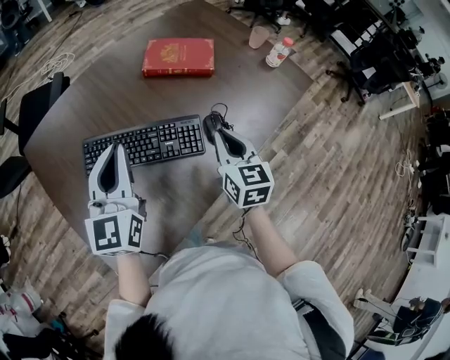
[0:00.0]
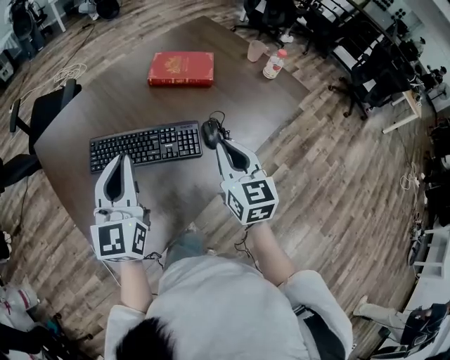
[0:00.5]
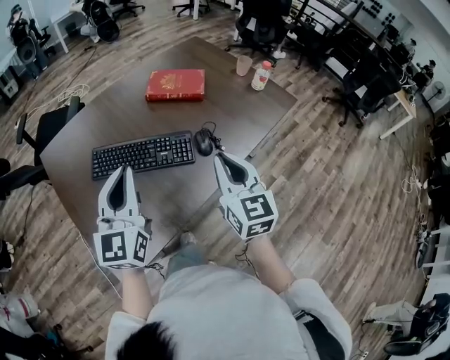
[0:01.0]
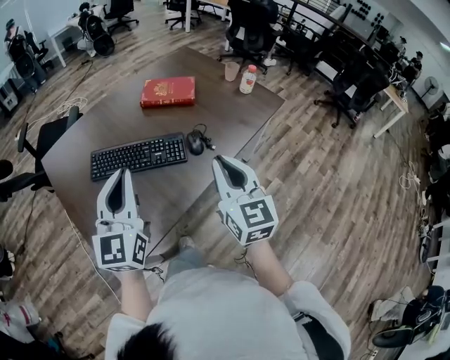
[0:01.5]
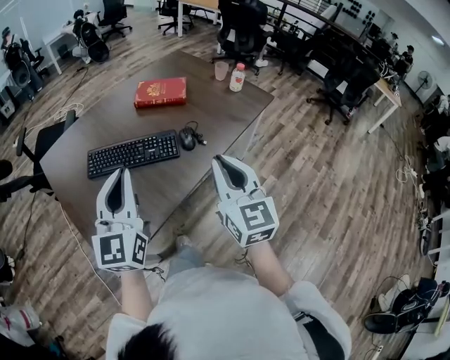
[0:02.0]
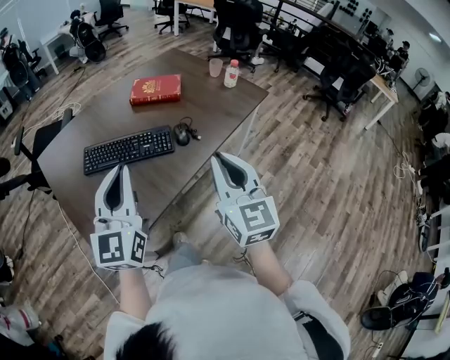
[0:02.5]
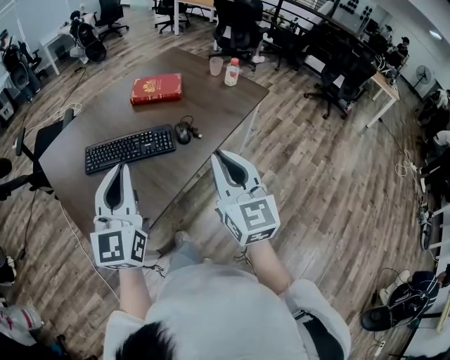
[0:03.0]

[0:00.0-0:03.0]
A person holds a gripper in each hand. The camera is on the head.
0:00.0 to 0:01.5: The grippers both shift backward and upward by some 20 cm.
0:01.5 to 0:03.0: The two grippers go about 10 cm backward.

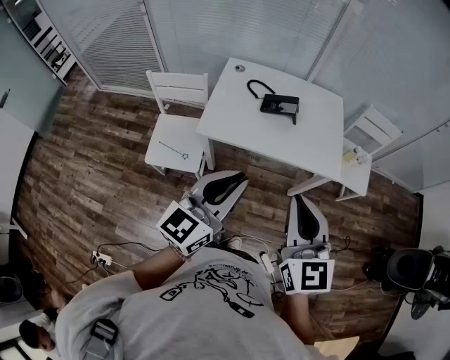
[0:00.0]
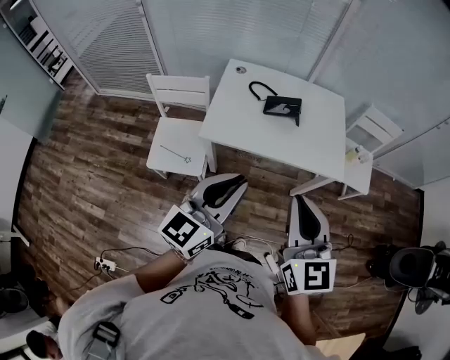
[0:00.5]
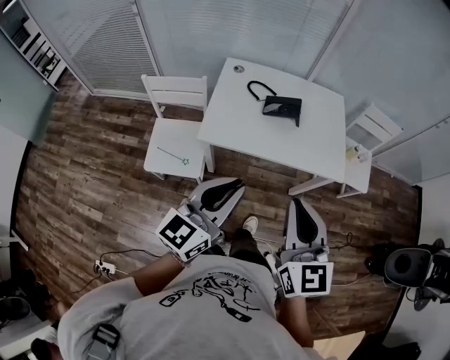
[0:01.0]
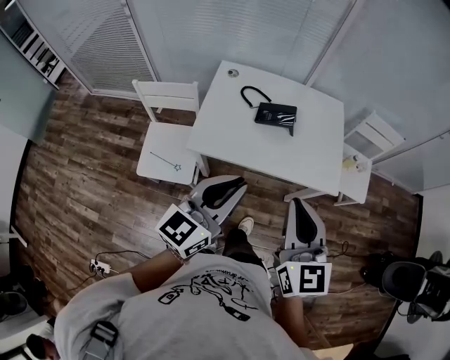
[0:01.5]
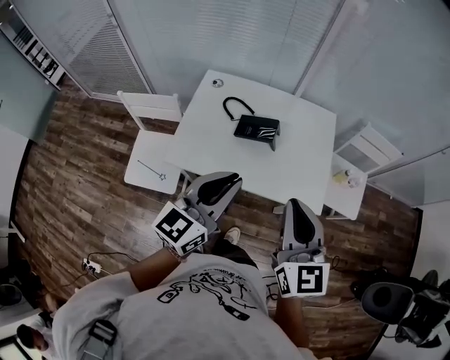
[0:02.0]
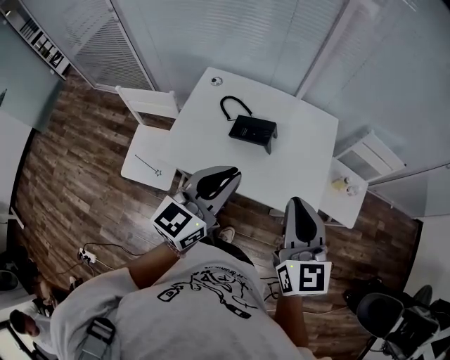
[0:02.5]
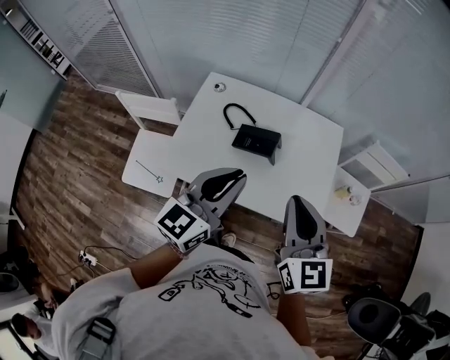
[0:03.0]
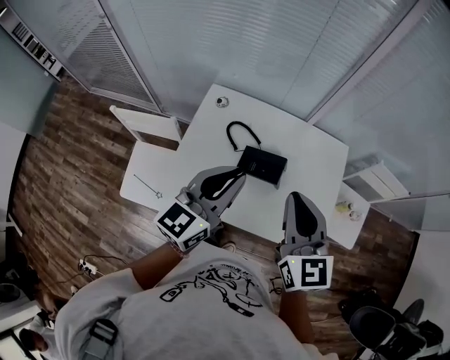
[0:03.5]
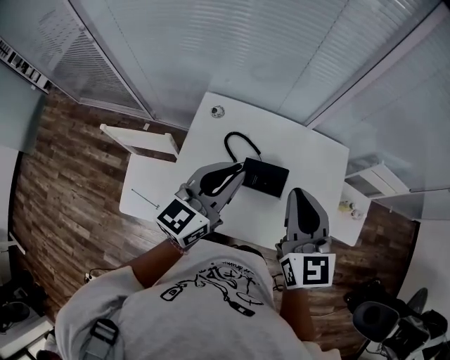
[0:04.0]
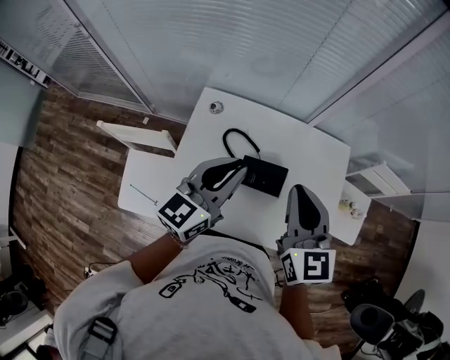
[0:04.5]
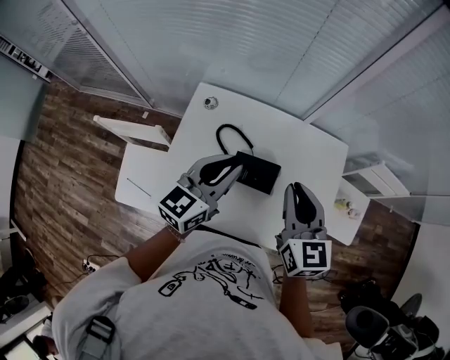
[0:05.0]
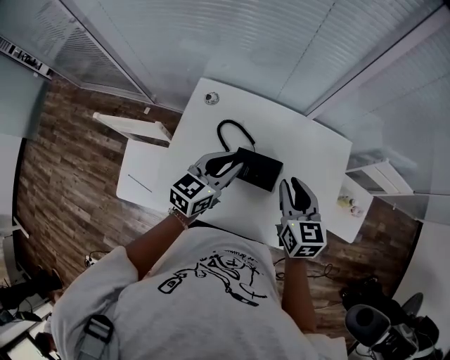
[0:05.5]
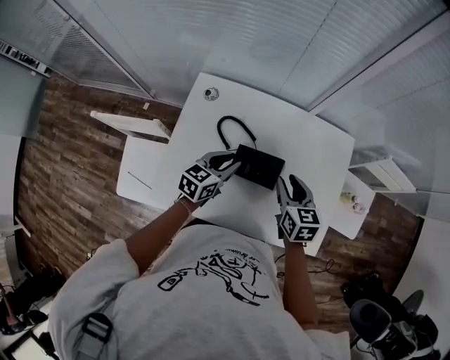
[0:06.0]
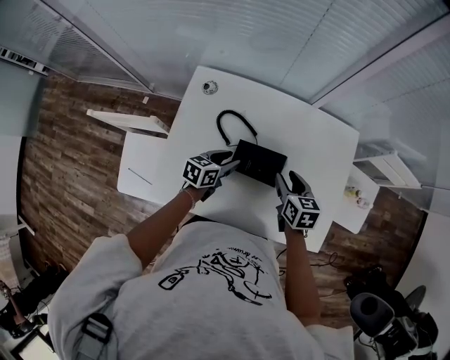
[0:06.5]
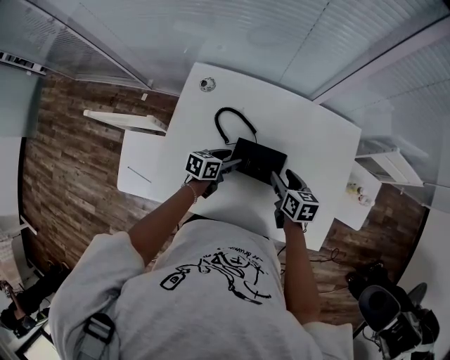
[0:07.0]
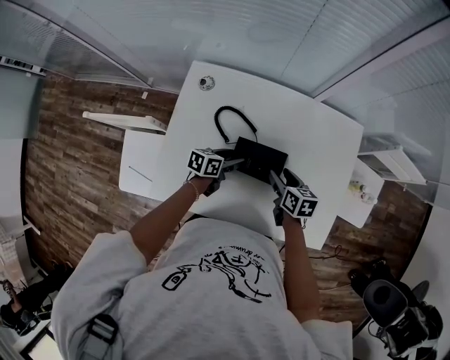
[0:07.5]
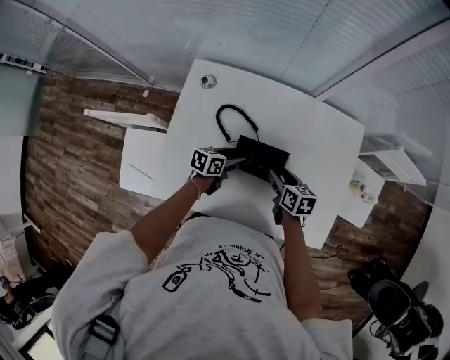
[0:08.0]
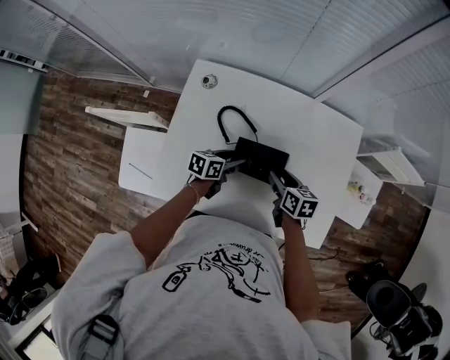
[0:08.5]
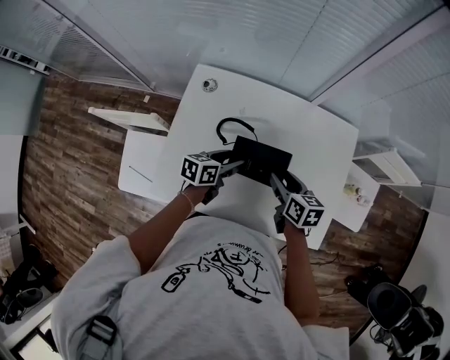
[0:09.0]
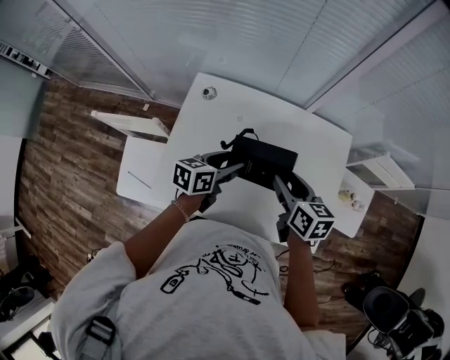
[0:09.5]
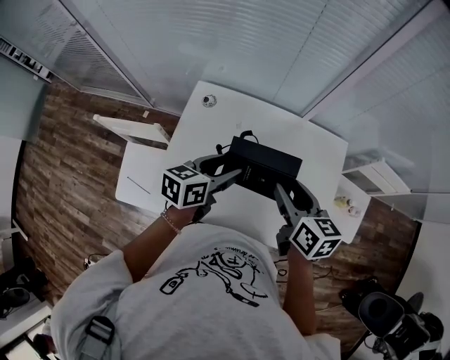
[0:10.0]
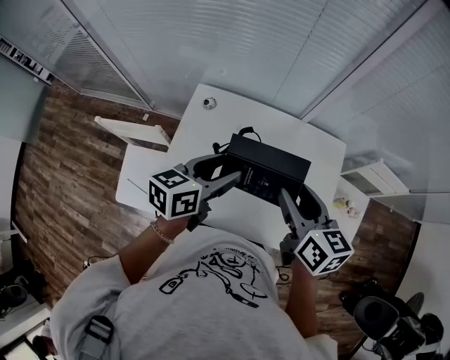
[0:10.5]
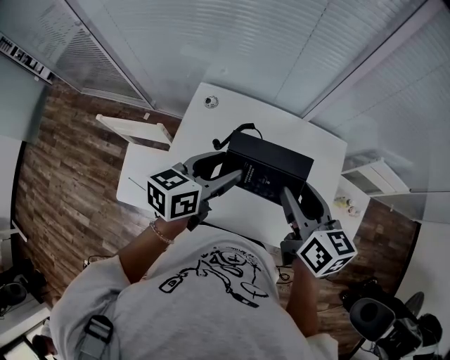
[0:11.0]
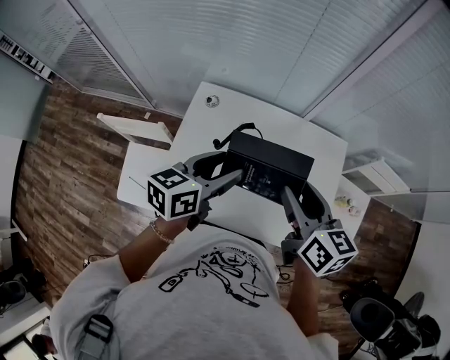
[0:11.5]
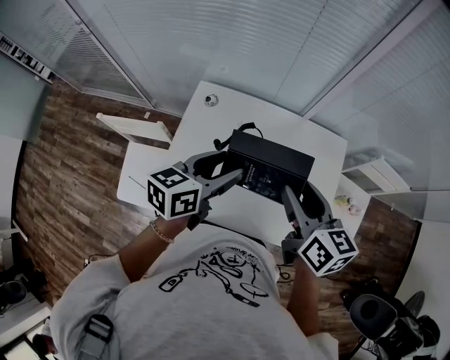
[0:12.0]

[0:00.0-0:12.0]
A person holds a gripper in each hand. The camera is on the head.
0:00.0 to 0:02.0: Both grippers move forward, approximately 20 cm.
0:02.0 to 0:04.0: Both grippers move forward, about 25 cm.
0:04.0 to 0:06.0: The two grippers go approximately 25 cm downward. The left gripper changes its angle by about 30 degrees; the right gripper rotates approximately 30 degrees, and opens up.
0:06.0 to 0:08.0: The two grippers go roughly 15 cm downward. The right gripper changes its angle by some 20 degrees, and opens its fingers. The left gripper rotates approximately 30 degrees, and opens.
0:08.0 to 0:10.0: The two grippers go some 25 cm upward.
0:10.0 to 0:12.0: Both grippers travel together upward, approximately 10 cm.

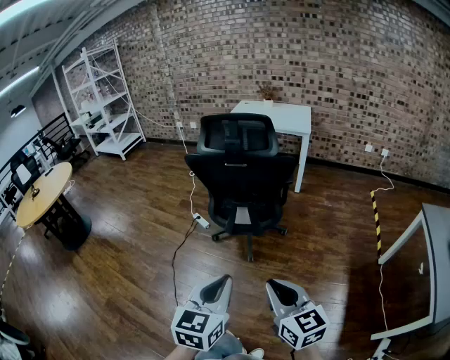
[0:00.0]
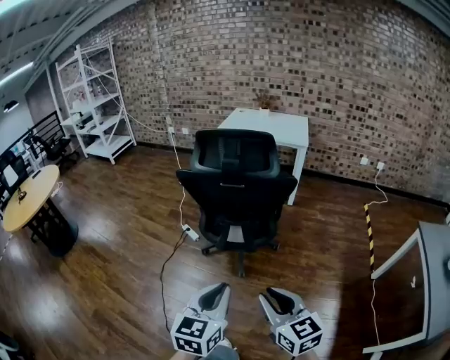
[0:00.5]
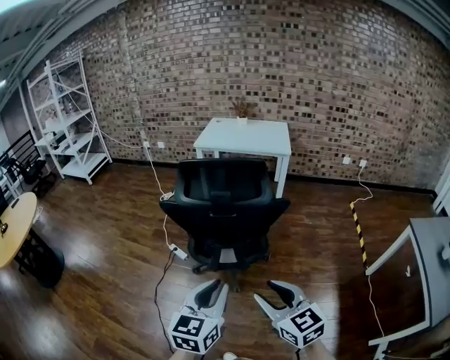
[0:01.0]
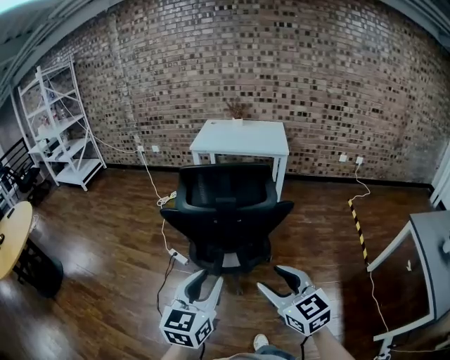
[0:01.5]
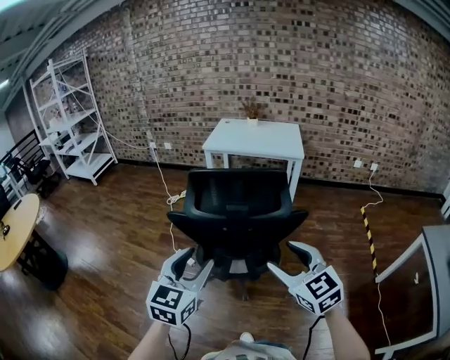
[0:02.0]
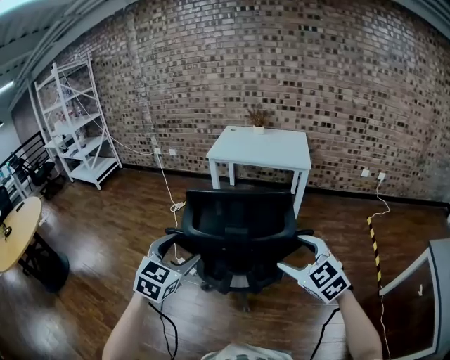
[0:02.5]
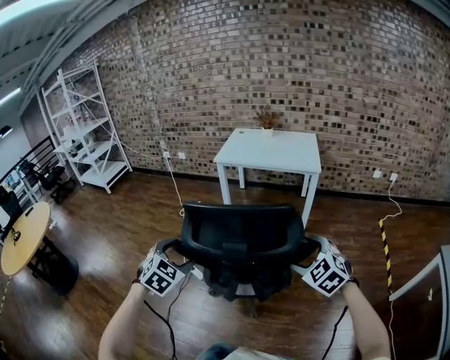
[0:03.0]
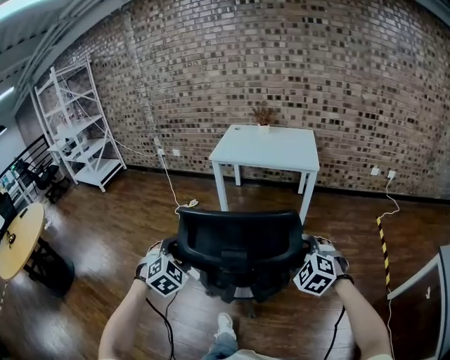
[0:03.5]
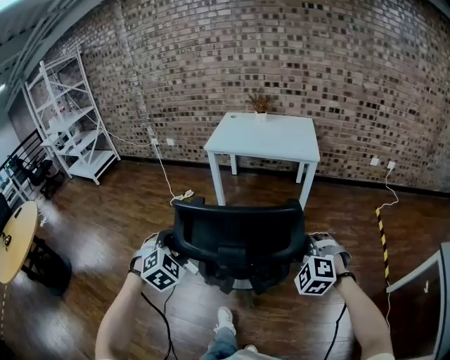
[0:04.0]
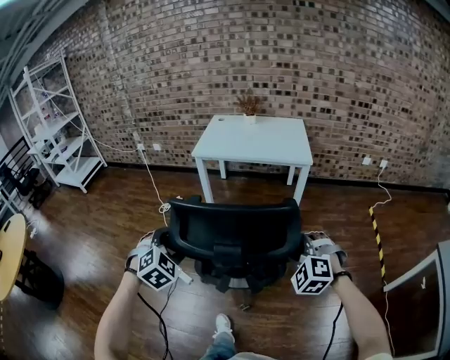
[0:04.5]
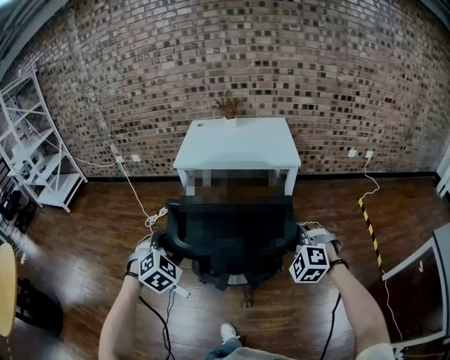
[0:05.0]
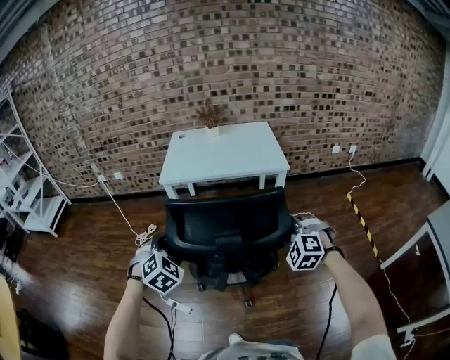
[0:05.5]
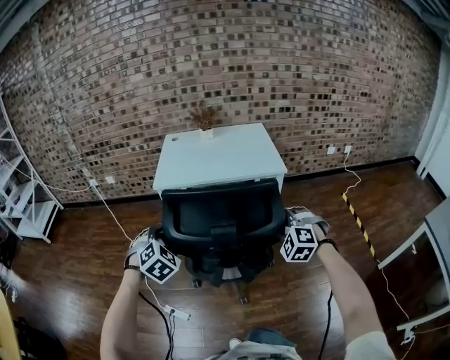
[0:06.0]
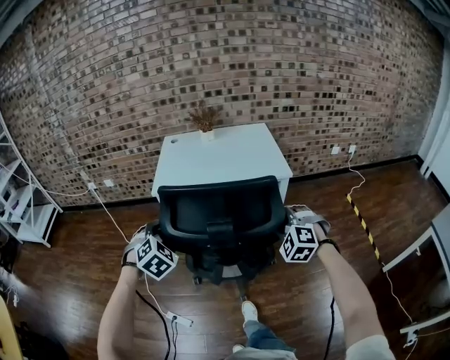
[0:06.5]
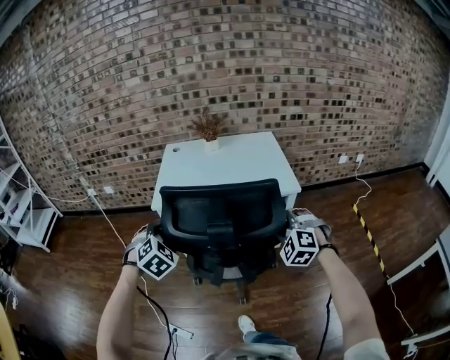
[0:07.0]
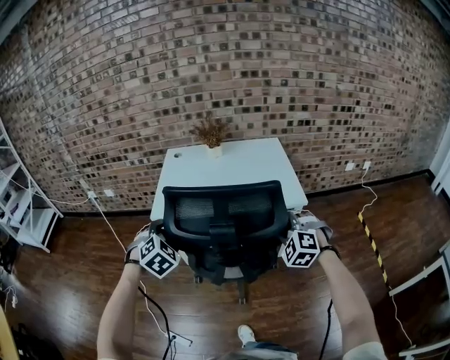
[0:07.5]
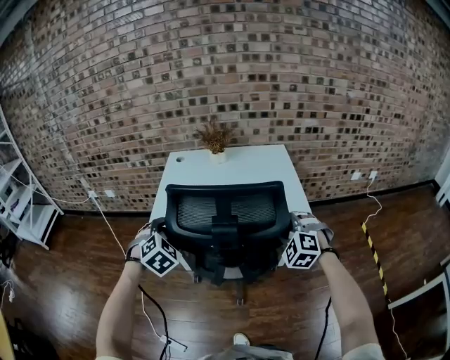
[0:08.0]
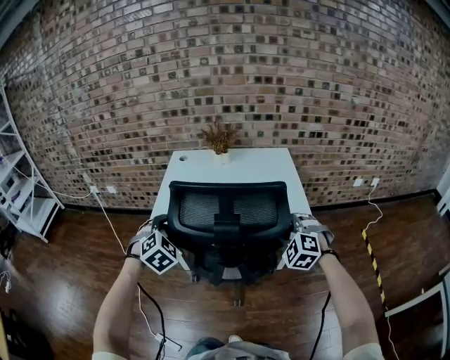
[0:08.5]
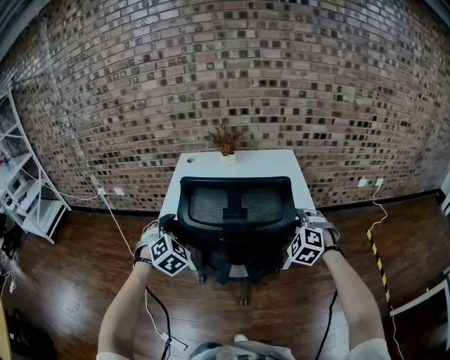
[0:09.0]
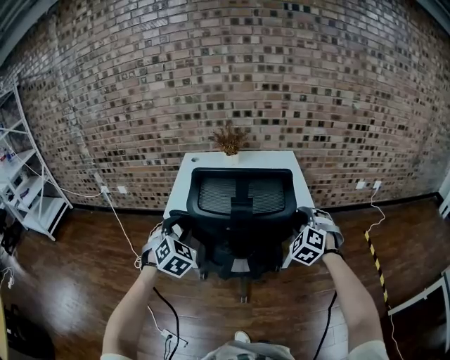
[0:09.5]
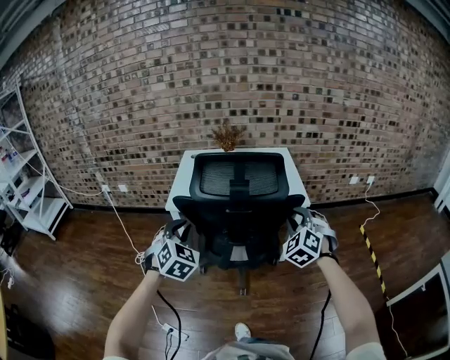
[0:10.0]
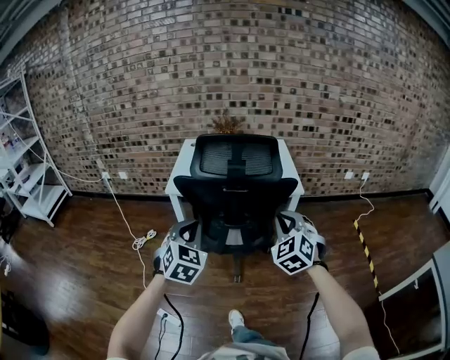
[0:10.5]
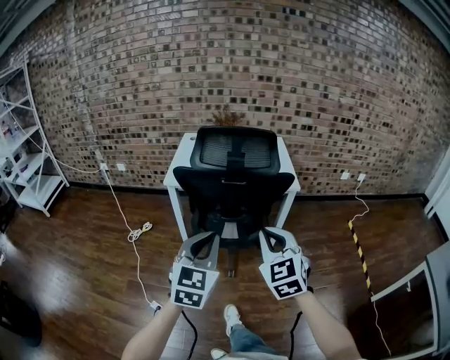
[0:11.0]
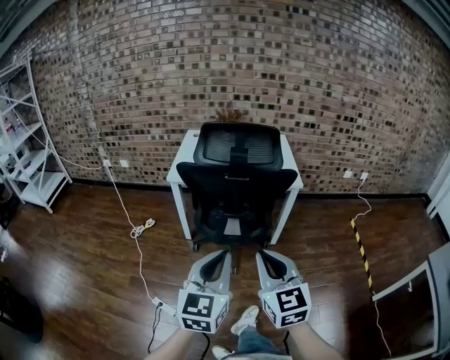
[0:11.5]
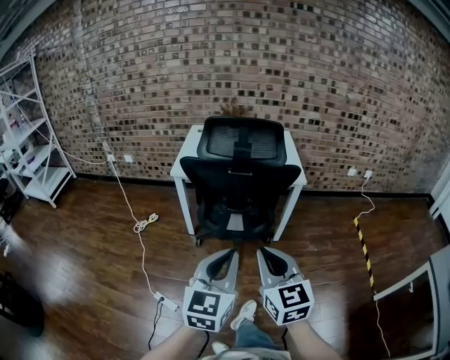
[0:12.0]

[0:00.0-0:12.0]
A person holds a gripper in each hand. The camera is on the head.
0:00.0 to 0:02.0: Both grippers move forward, about 35 cm. The left gripper opens up, while the right gripper swivels some 20 degrees, and opens its fingers.
0:02.0 to 0:04.0: The two grippers go roughly 25 cm forward and downward. The left gripper points its fingers some 30 degrees further downward, while the right gripper rotates around the line of its fingers by approximately 40 degrees, counterclockwise from behind.
0:04.0 to 0:06.0: Both grippers move forward, roughly 30 cm.
0:06.0 to 0:08.0: Both grippers travel together forward, approximately 30 cm.
0:08.0 to 0:10.0: Both grippers move backward and upward, some 15 cm. The right gripper changes its angle by about 20 degrees, while the left gripper swivels some 20 degrees, and closes its fingers.
0:10.0 to 0:12.0: The right gripper moves backward, approximately 30 cm, and rotates around the line of its fingers by about 50 degrees, clockwise from behind, while the left gripper heads backward and to the right, covering about 30 cm, and rolls counterclockwise, seen from behind, by some 40 degrees.
